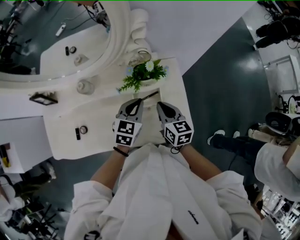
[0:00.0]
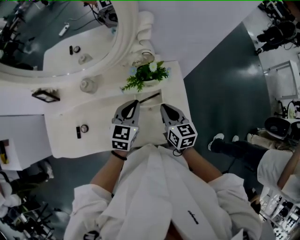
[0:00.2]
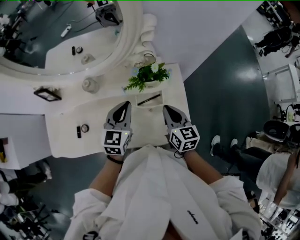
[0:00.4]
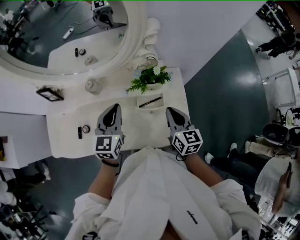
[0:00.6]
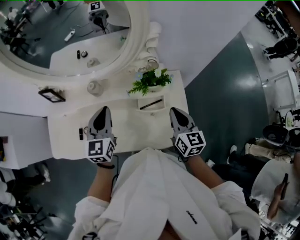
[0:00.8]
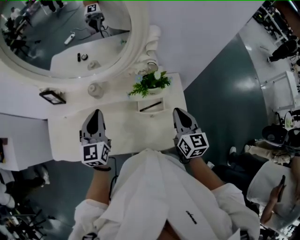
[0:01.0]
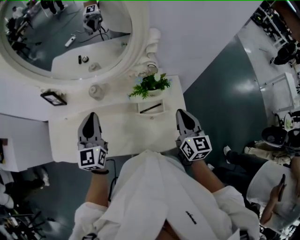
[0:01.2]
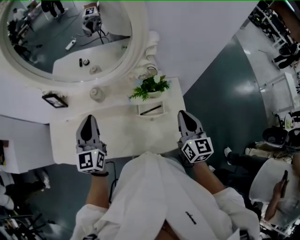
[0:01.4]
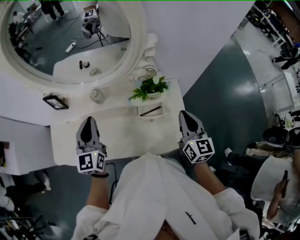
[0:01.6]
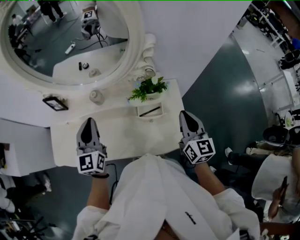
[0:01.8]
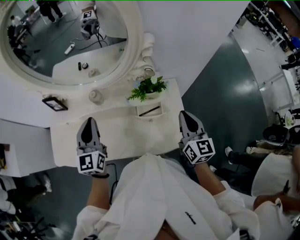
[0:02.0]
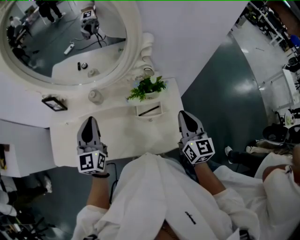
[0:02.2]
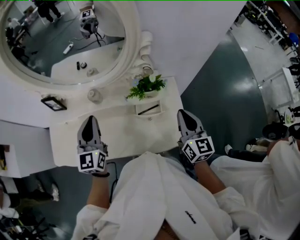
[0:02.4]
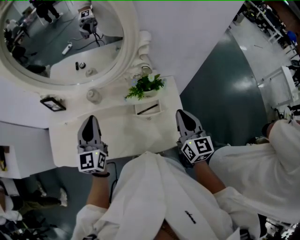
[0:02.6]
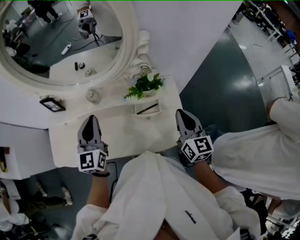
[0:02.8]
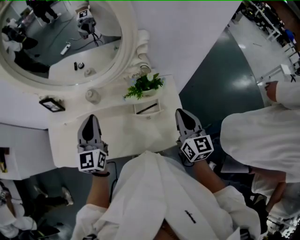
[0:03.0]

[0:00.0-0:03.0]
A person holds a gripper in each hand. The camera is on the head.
0:00.0 to 0:01.6: The right gripper heads upward, covering about 15 cm, and swivels approximately 20 degrees; the left gripper heads to the left and upward, covering some 30 cm, and swivels roughly 40 degrees.
0:01.6 to 0:03.0: The grippers make only small movements.

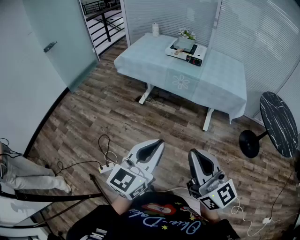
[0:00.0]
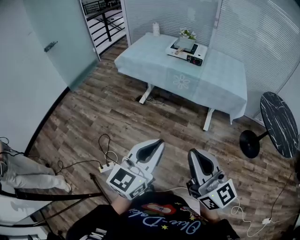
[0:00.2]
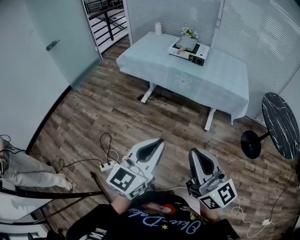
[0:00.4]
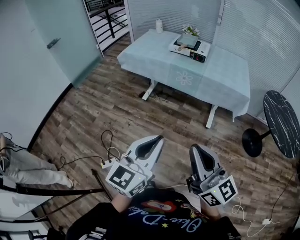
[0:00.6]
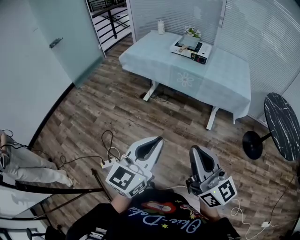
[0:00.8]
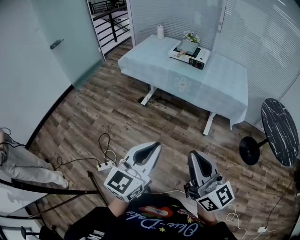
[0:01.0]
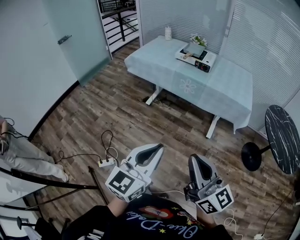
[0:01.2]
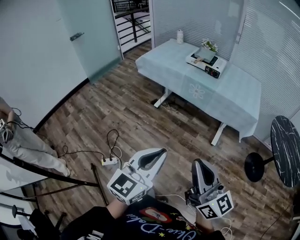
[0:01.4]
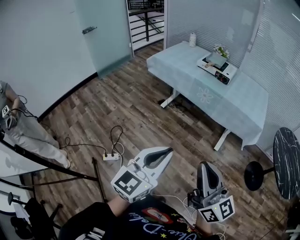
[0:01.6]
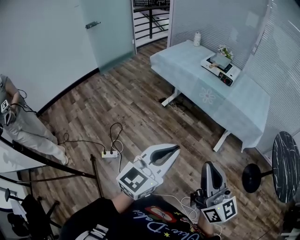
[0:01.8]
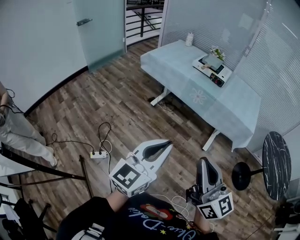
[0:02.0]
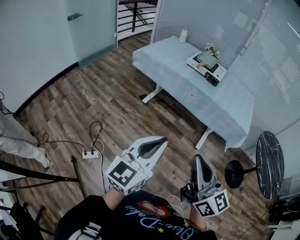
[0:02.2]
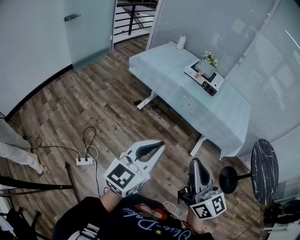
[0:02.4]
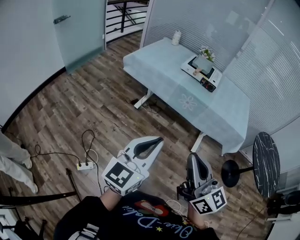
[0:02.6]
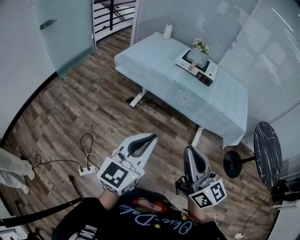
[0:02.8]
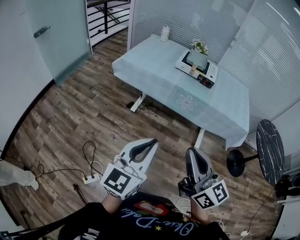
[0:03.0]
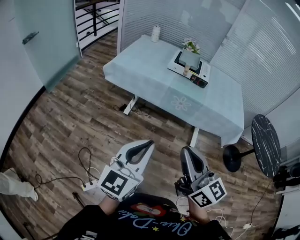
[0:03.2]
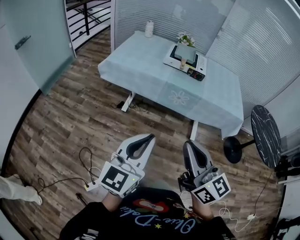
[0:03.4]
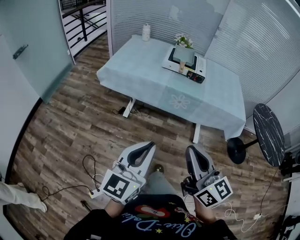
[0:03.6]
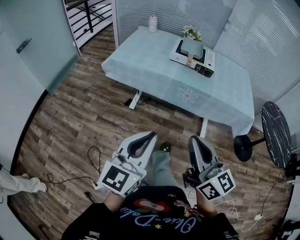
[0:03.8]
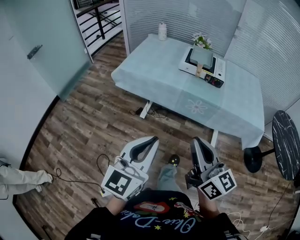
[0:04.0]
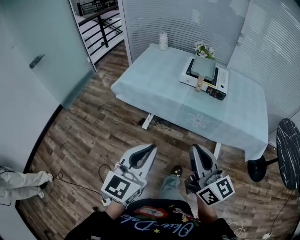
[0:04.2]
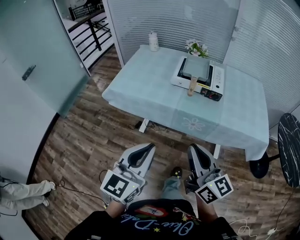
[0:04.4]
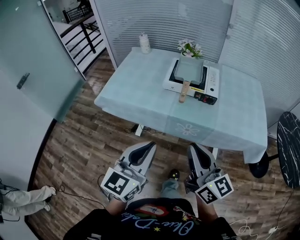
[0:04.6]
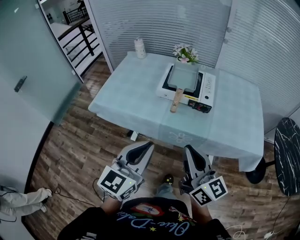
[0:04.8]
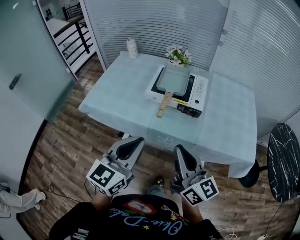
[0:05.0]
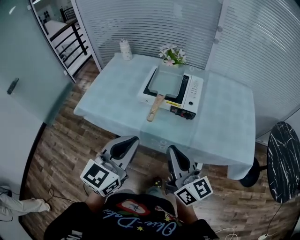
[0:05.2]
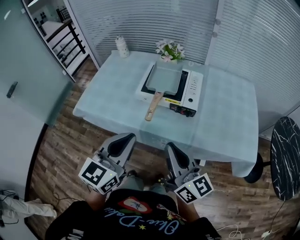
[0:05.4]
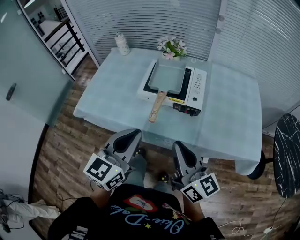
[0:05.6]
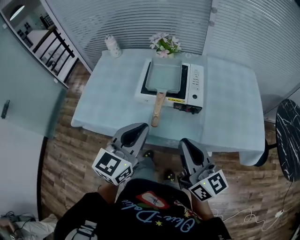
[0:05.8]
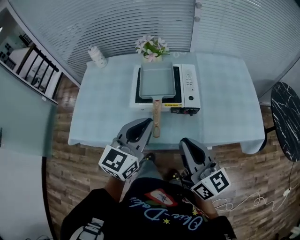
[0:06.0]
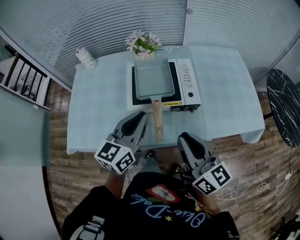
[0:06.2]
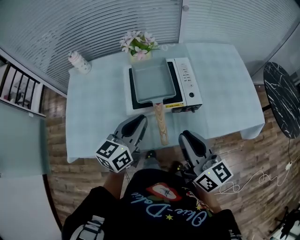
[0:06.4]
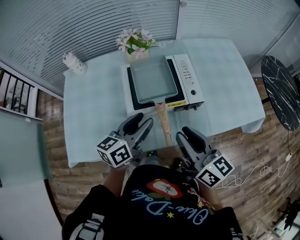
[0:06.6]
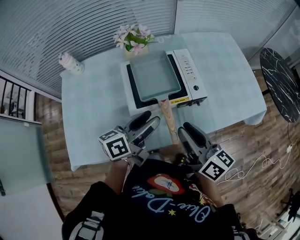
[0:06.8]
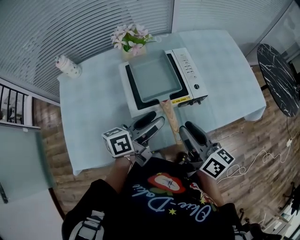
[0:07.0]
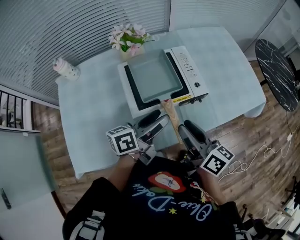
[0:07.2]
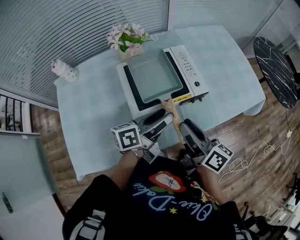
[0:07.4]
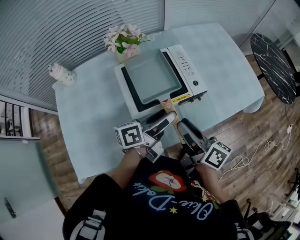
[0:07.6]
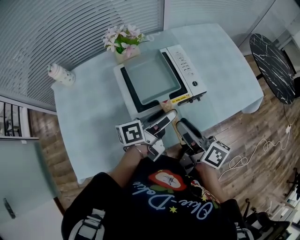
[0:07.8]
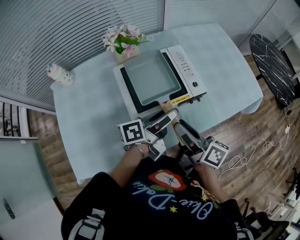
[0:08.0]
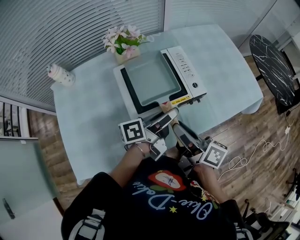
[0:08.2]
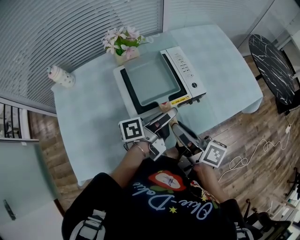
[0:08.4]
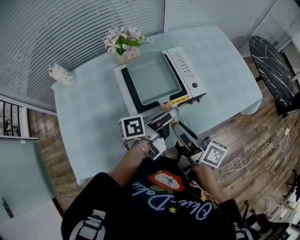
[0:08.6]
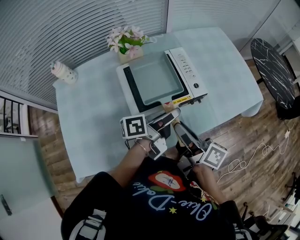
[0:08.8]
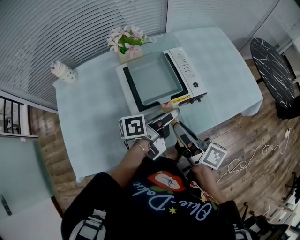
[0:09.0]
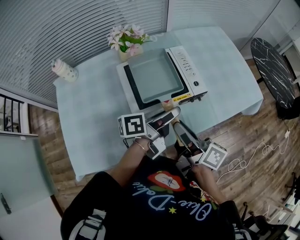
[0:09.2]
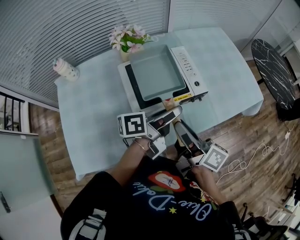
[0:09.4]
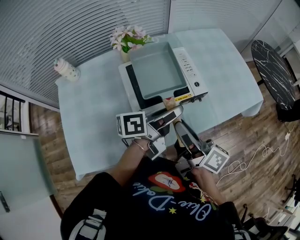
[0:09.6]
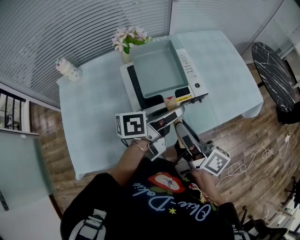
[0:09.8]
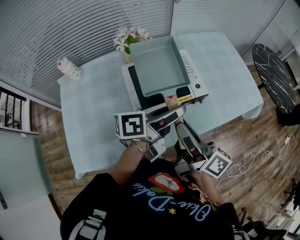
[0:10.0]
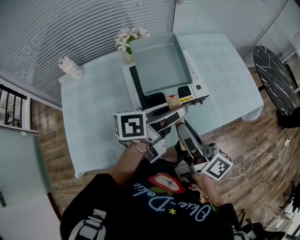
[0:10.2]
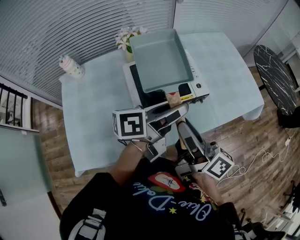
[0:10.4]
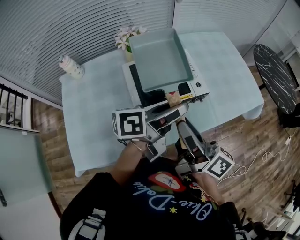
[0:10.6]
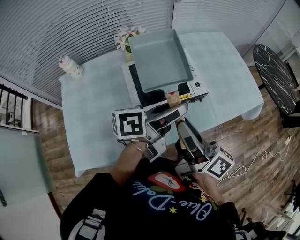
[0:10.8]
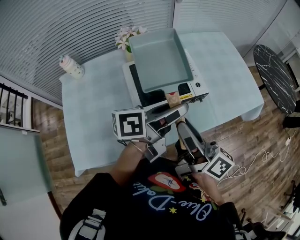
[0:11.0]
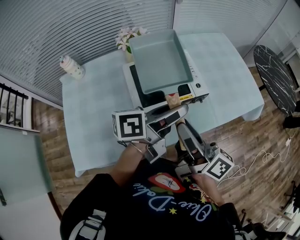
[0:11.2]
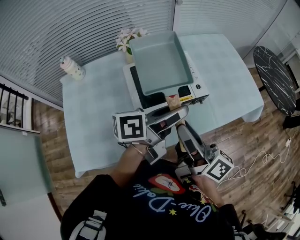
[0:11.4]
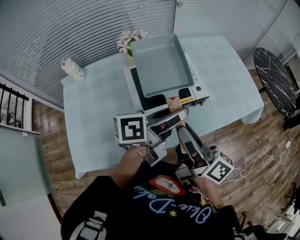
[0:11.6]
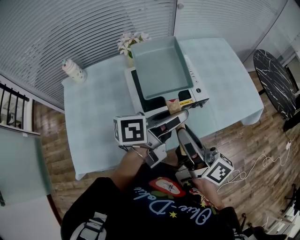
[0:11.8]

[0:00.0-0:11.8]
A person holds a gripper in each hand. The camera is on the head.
0:00.0 to 0:01.4: The right gripper moves some 5 cm.
0:01.4 to 0:03.0: Both grippers travel together forward and to the left, approximately 30 cm.
0:03.0 to 0:04.4: Both grippers travel together forward, approximately 25 cm.
0:04.4 to 0:06.0: The two grippers go roughly 30 cm forward.
0:06.0 to 0:07.4: The left gripper travels downward by approximately 10 cm, rotates around the line of its fingers by some 60 degrees, counterclockwise from behind, and opens up, while the right gripper ends up roughly 15 cm from where it was, turns by some 40 degrees, and opens its fingers.
0:07.4 to 0:08.8: The left gripper closes.
0:08.8 to 0:10.4: The two grippers go approximately 10 cm upward.
0:10.4 to 0:11.8: The two grippers keep their place.

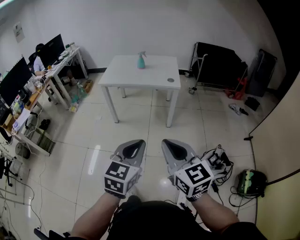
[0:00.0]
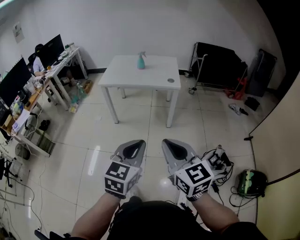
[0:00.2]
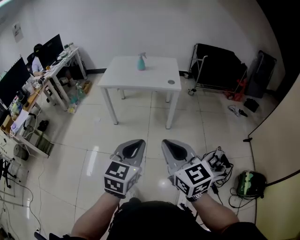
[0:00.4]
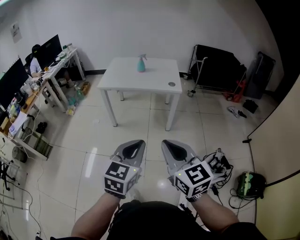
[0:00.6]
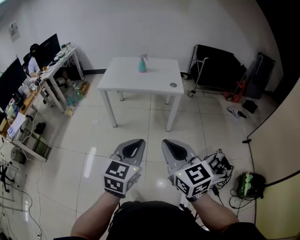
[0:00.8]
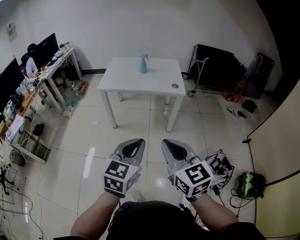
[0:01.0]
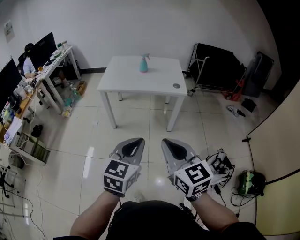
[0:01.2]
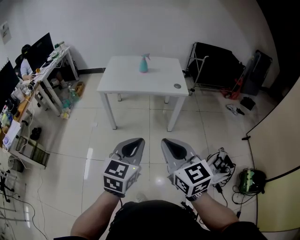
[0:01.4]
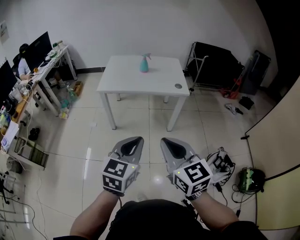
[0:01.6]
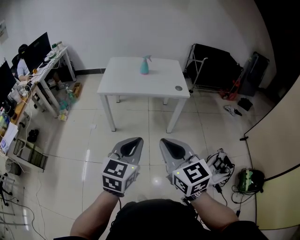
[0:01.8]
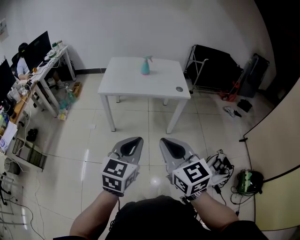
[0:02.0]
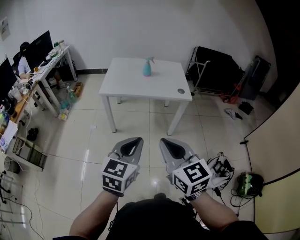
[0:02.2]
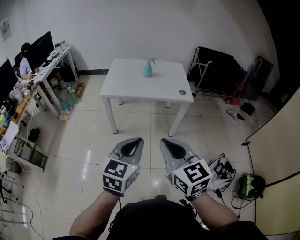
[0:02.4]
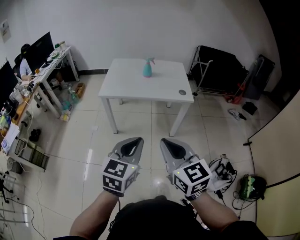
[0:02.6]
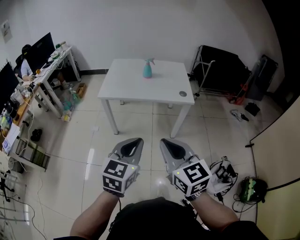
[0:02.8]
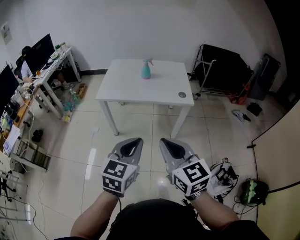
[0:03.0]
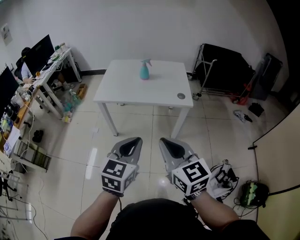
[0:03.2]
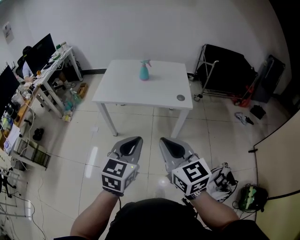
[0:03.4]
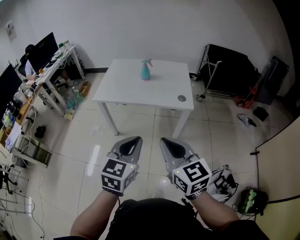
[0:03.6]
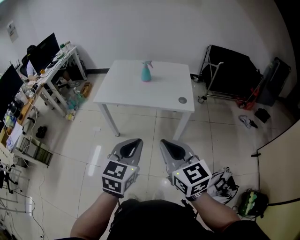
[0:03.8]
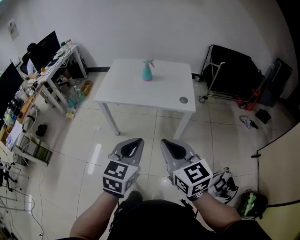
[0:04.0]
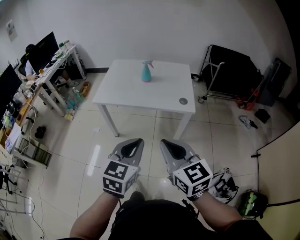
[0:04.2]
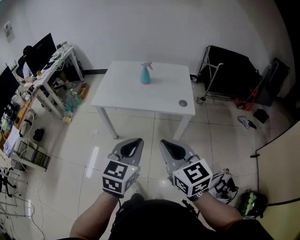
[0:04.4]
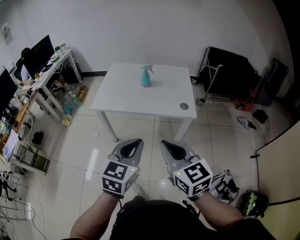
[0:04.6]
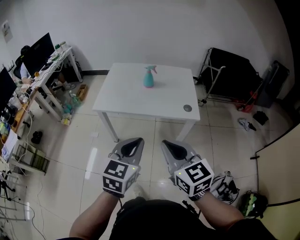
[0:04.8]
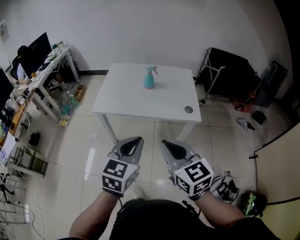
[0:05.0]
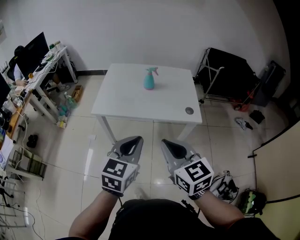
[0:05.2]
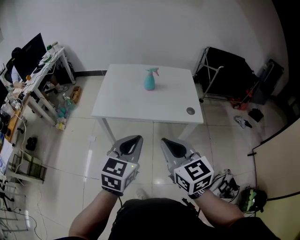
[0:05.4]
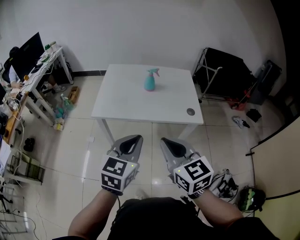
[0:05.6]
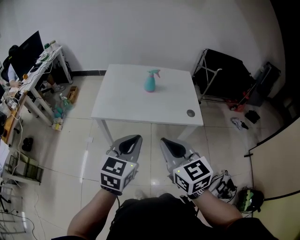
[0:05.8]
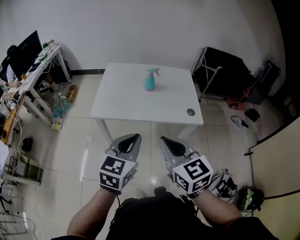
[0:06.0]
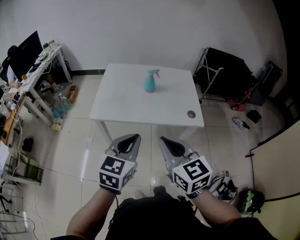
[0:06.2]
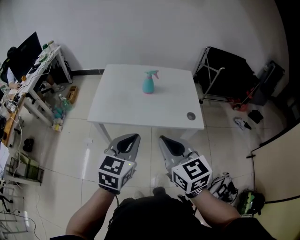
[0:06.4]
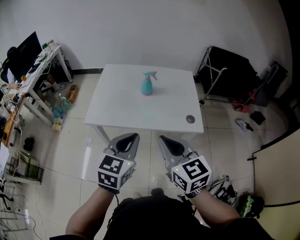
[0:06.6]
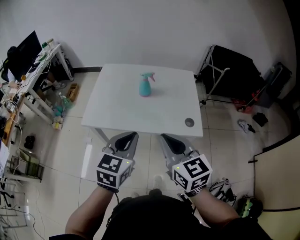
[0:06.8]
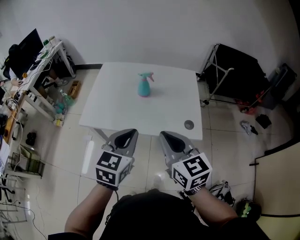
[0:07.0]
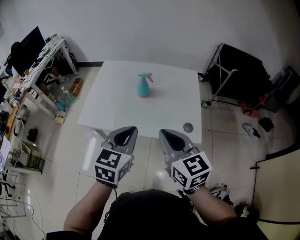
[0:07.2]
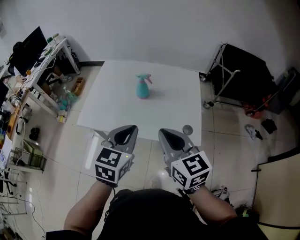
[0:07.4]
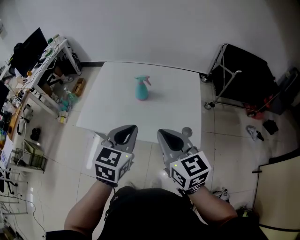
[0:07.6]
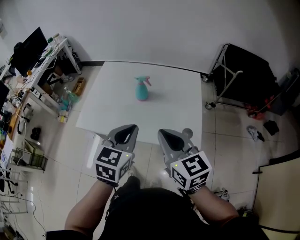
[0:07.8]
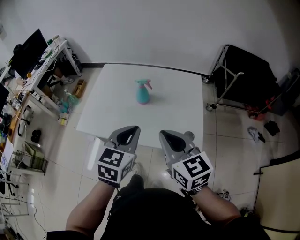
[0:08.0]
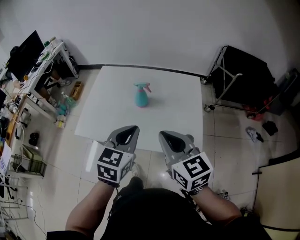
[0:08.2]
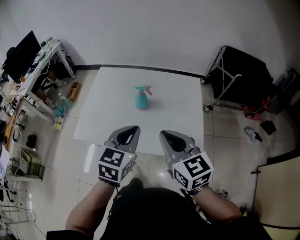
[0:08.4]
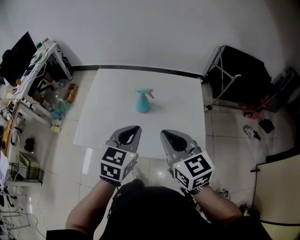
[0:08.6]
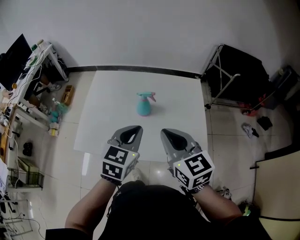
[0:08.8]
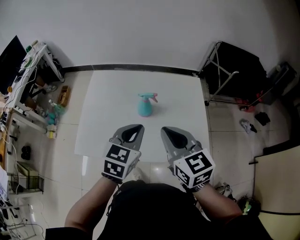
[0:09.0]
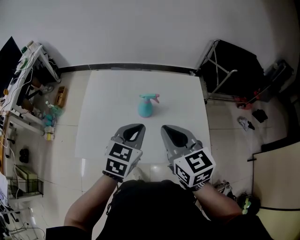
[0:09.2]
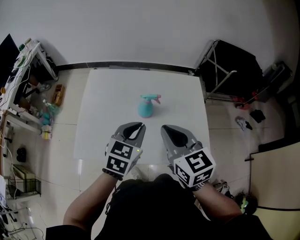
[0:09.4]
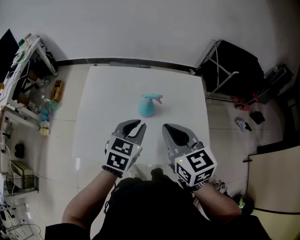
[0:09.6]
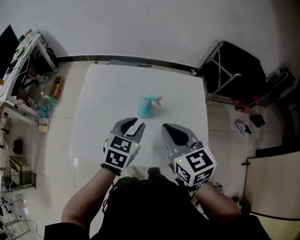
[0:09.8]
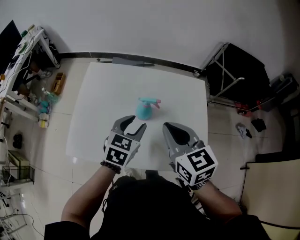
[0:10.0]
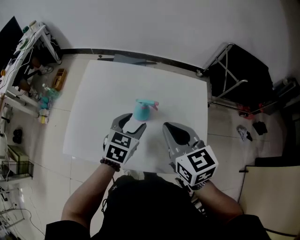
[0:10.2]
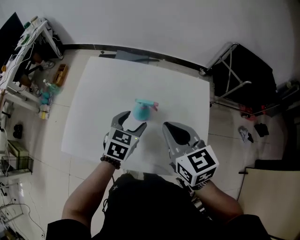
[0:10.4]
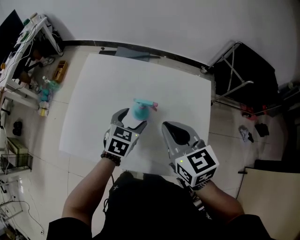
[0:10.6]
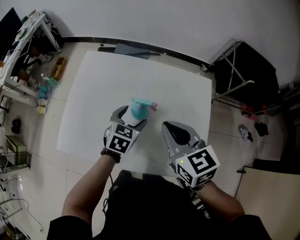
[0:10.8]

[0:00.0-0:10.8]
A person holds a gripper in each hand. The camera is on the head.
0:00.0 to 0:01.6: Both grippers move to the left and forward, roughly 20 cm.
0:01.6 to 0:03.0: The two grippers go roughly 10 cm forward.
0:03.0 to 0:04.6: The grippers both shift forward by approximately 10 cm.
0:04.6 to 0:06.2: The two grippers go some 15 cm forward and to the left.
0:06.2 to 0:07.8: Both grippers travel together forward and to the right, approximately 20 cm.
0:07.8 to 0:09.2: The right gripper shifts some 15 cm forward and to the left. Meanwhile the left gripper travels forward by some 15 cm.
0:09.2 to 0:10.8: The right gripper goes roughly 10 cm forward. Meanwhile the left gripper shifts roughly 20 cm downward and forward, and opens up.
